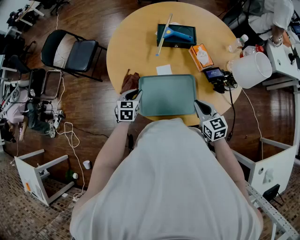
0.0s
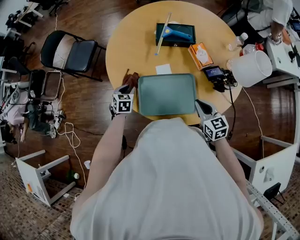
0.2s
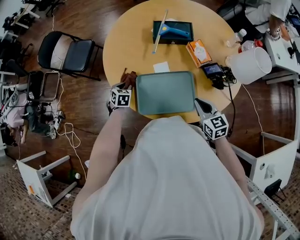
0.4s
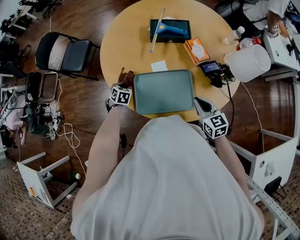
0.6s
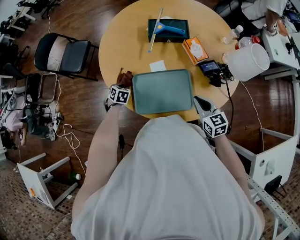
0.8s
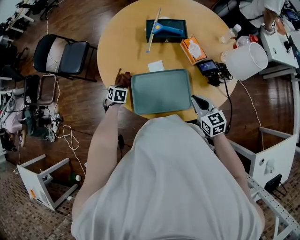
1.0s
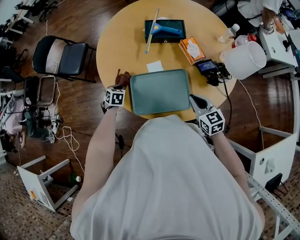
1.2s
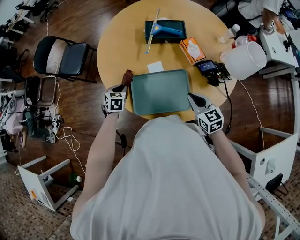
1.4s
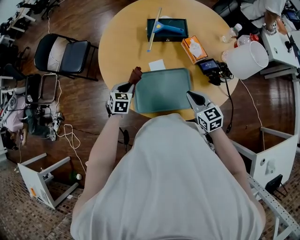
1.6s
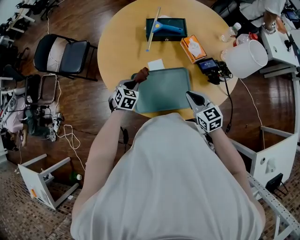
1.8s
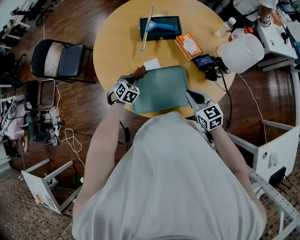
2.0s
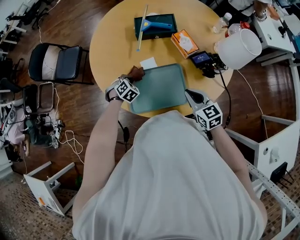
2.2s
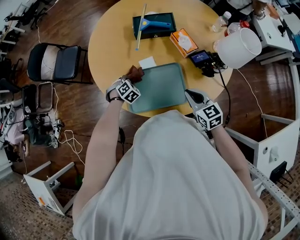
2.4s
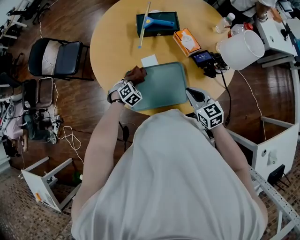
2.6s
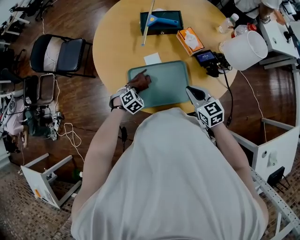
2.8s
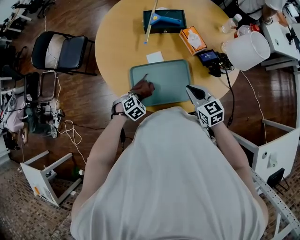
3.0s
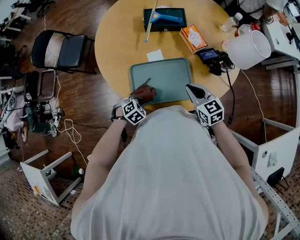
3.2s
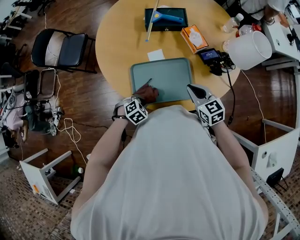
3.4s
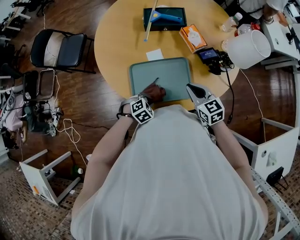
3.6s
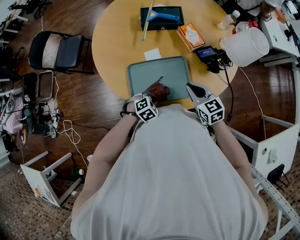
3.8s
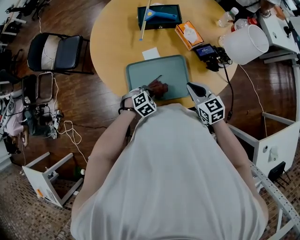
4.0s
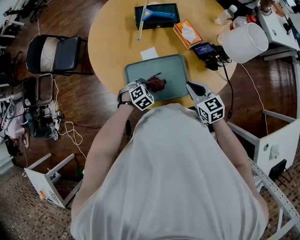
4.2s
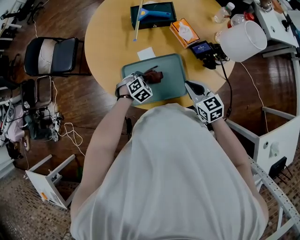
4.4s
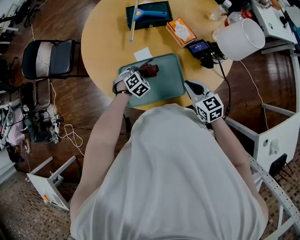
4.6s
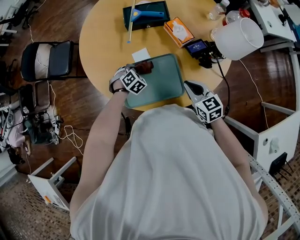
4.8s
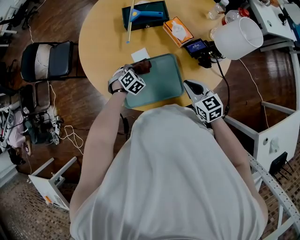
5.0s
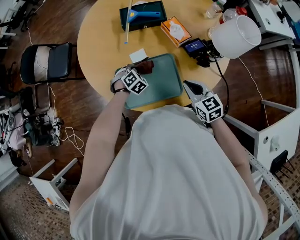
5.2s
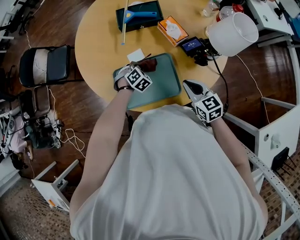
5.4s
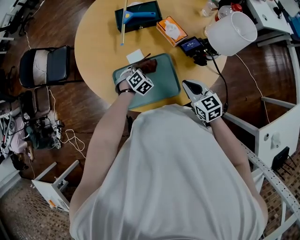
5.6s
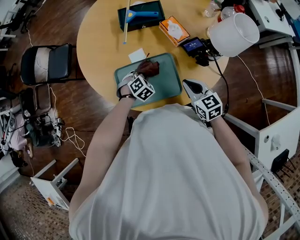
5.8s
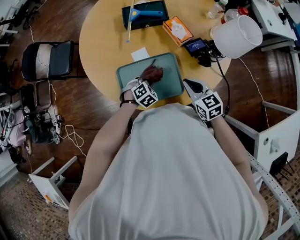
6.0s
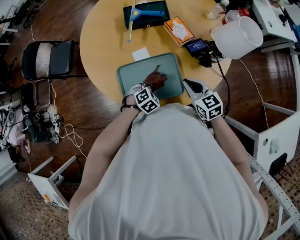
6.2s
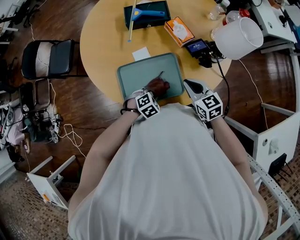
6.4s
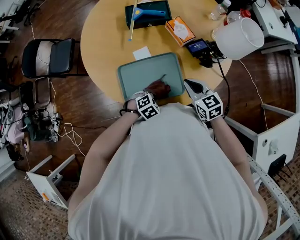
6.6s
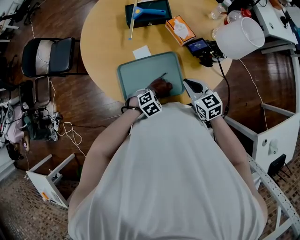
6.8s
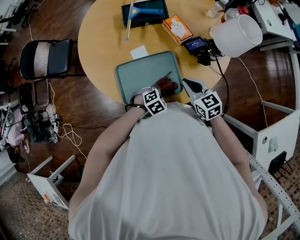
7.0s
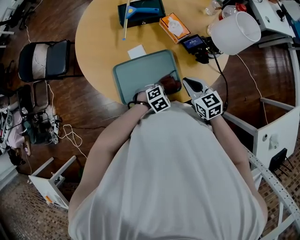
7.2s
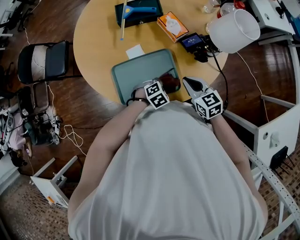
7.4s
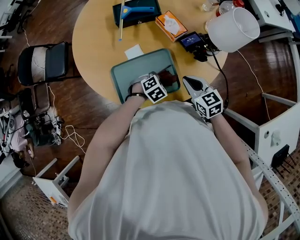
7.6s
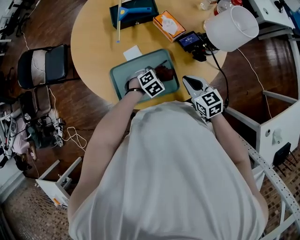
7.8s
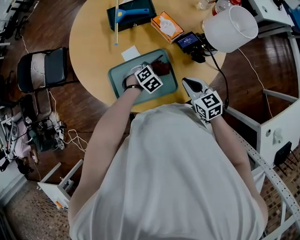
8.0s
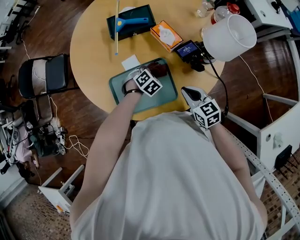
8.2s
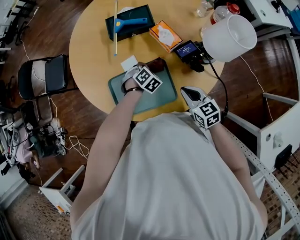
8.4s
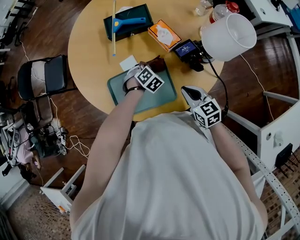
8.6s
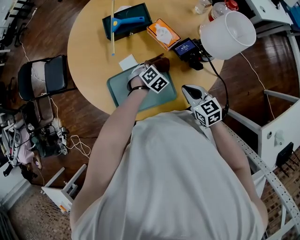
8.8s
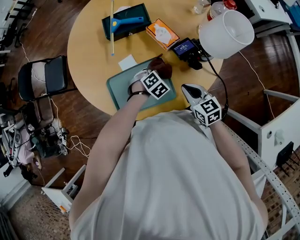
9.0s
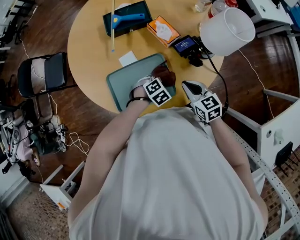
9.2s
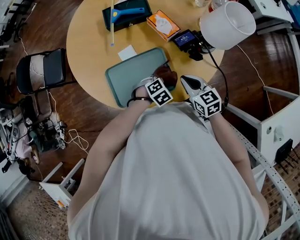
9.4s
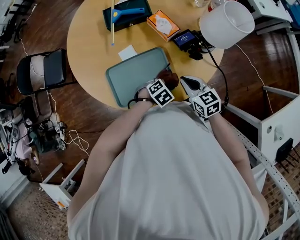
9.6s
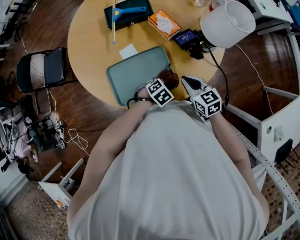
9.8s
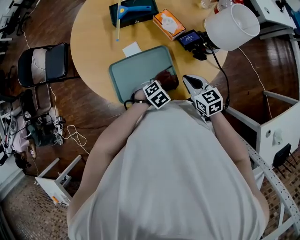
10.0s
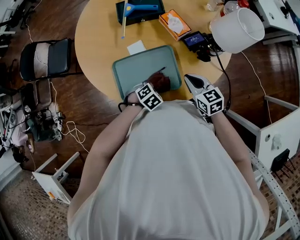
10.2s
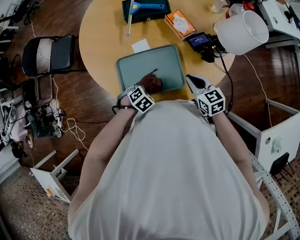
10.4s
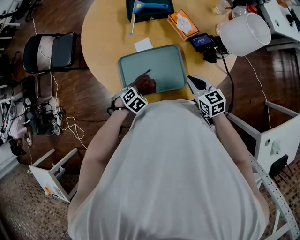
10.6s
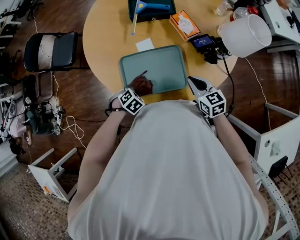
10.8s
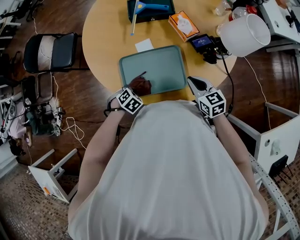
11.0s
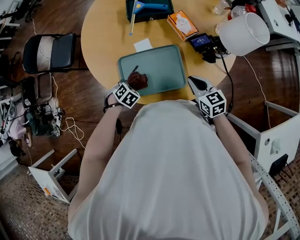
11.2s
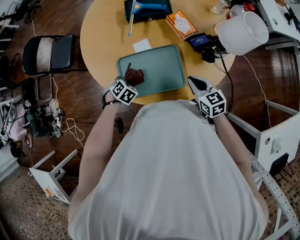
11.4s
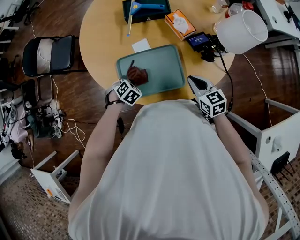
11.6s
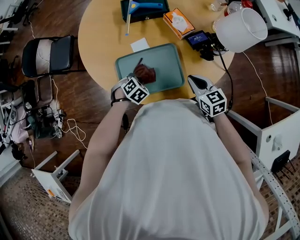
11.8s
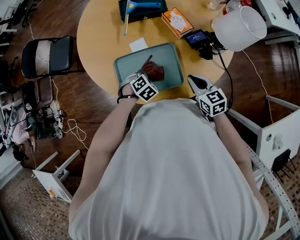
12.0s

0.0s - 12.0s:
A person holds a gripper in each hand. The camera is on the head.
0.0s - 1.6s: The left gripper travels downward and back again, roughly 10 cm each way.
1.6s - 3.0s: The left gripper is displaced backward and downward by some 15 cm, and rotates approximately 40 degrees.
3.0s - 4.4s: The left gripper is displaced forward and to the right by roughly 10 cm.
4.4s - 6.0s: The left gripper goes forward and returns, roughly 5 cm each way.
6.0s - 7.6s: The left gripper goes roughly 10 cm to the right.
7.6s - 9.0s: The left gripper travels forward by approximately 10 cm.
9.0s - 10.4s: The left gripper shifts by about 20 cm.

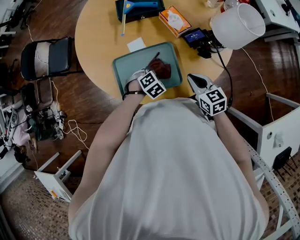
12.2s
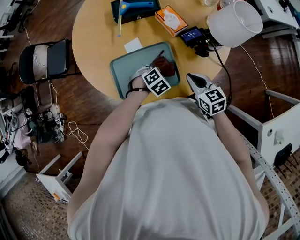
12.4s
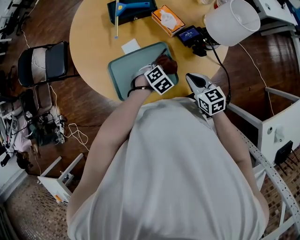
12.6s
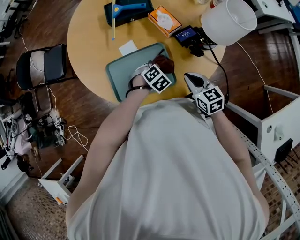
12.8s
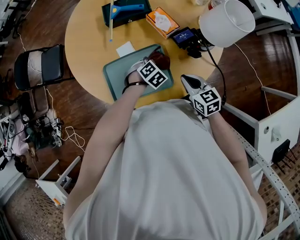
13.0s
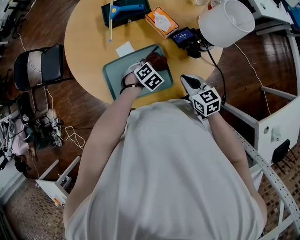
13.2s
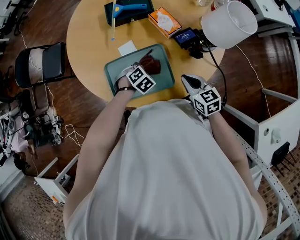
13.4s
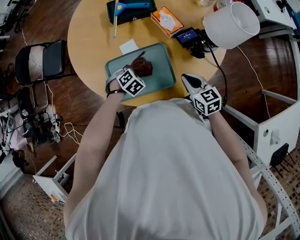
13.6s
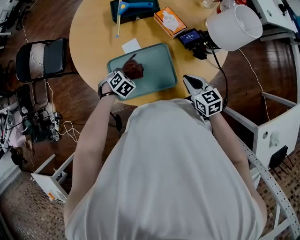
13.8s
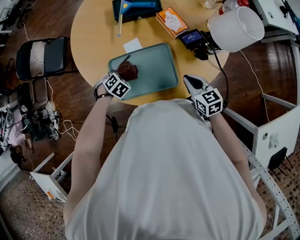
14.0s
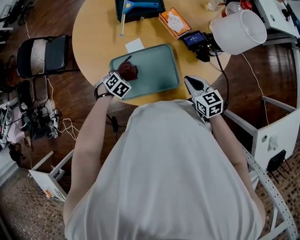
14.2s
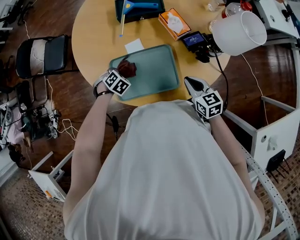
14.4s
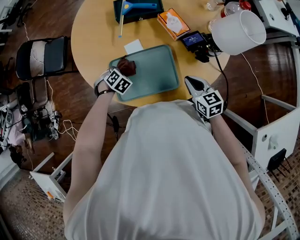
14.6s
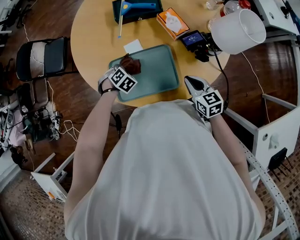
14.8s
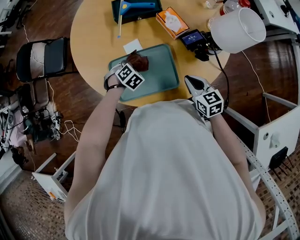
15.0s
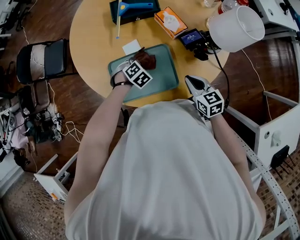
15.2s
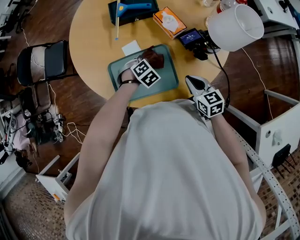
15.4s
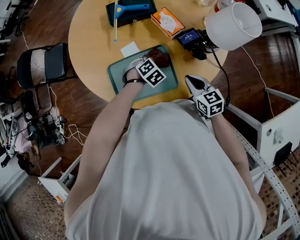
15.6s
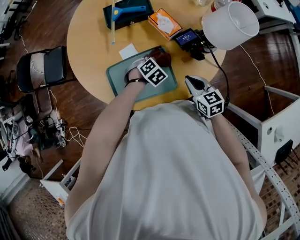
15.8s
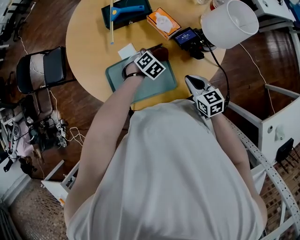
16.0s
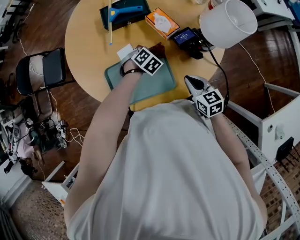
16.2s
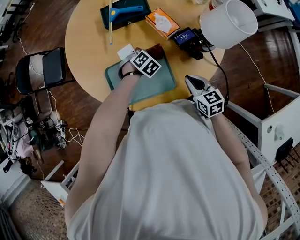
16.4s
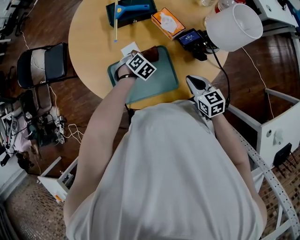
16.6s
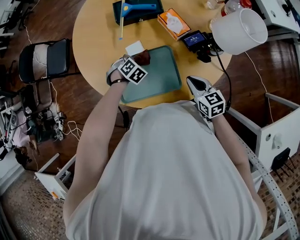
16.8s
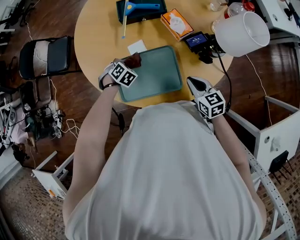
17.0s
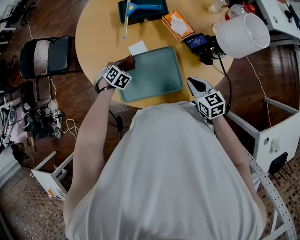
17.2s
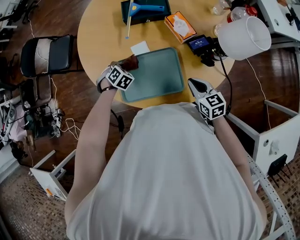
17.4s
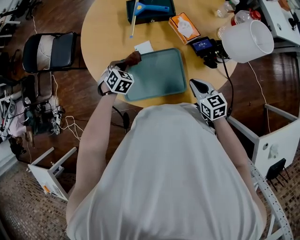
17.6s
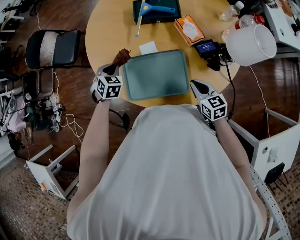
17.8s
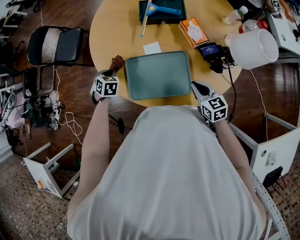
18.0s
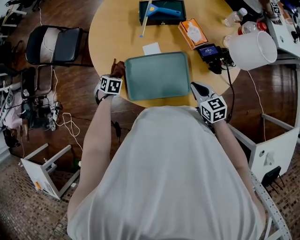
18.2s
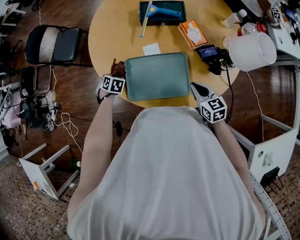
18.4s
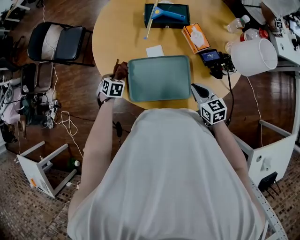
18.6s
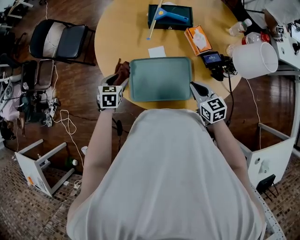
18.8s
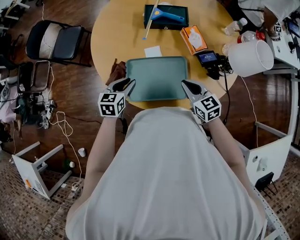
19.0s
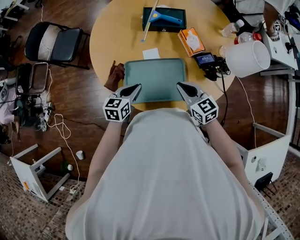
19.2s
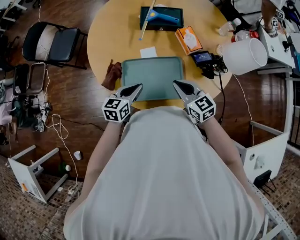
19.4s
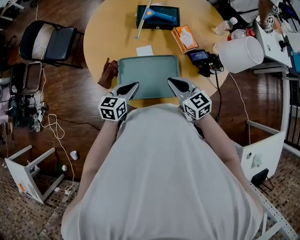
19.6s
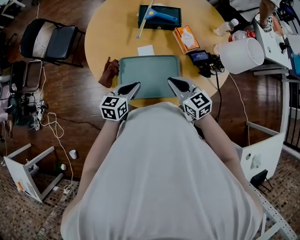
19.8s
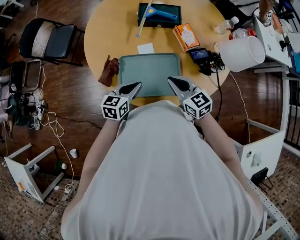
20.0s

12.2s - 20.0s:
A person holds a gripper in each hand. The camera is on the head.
12.2s - 13.8s: The left gripper goes about 10 cm to the left.
13.8s - 15.4s: The left gripper is displaced to the right by about 10 cm.
15.4s - 16.8s: The left gripper is displaced to the left and forward by approximately 10 cm.
16.8s - 18.4s: The left gripper goes roughly 20 cm to the left, and turns by roughly 40 degrees.
18.4s - 20.0s: The right gripper shifts by about 10 cm. The left gripper shifts by approximately 20 cm, and angles its fingers upward, by approximately 40 degrees.

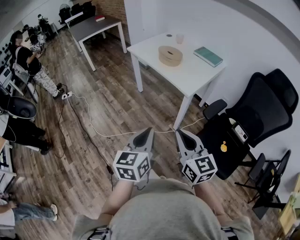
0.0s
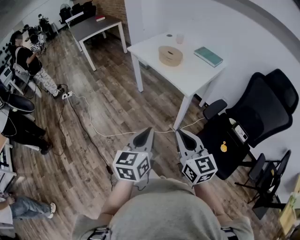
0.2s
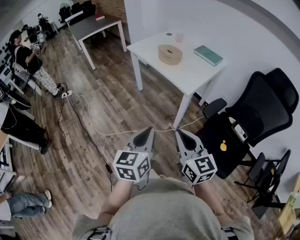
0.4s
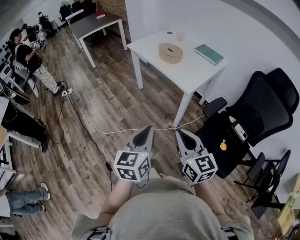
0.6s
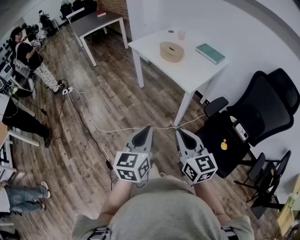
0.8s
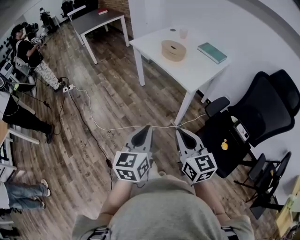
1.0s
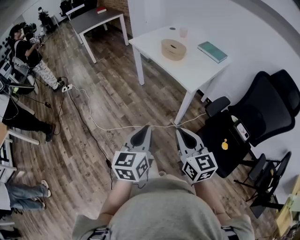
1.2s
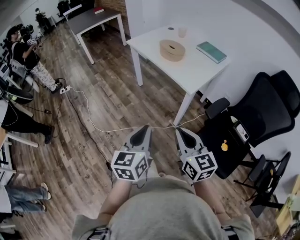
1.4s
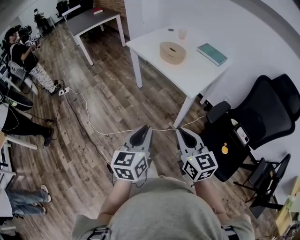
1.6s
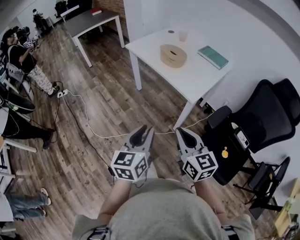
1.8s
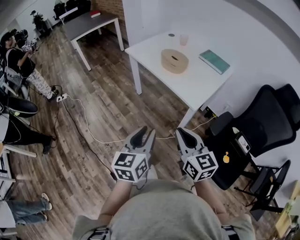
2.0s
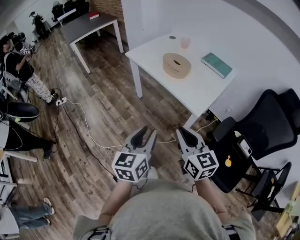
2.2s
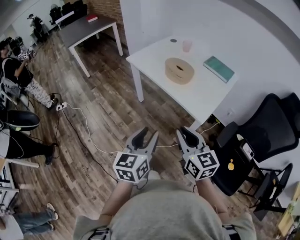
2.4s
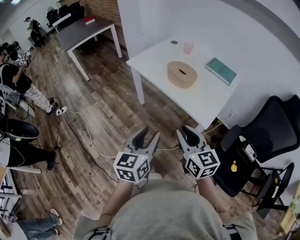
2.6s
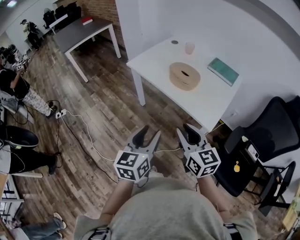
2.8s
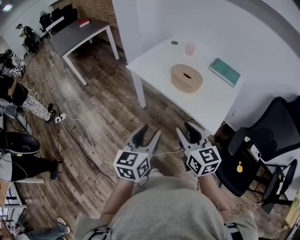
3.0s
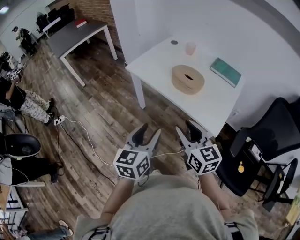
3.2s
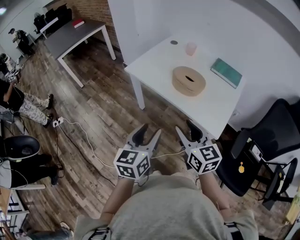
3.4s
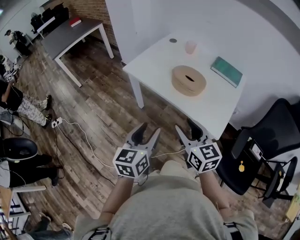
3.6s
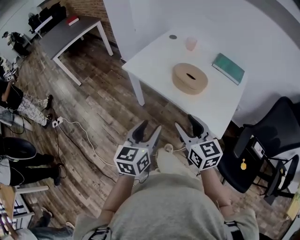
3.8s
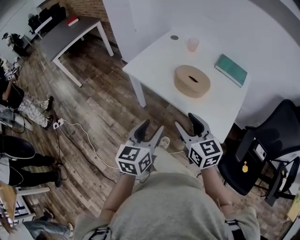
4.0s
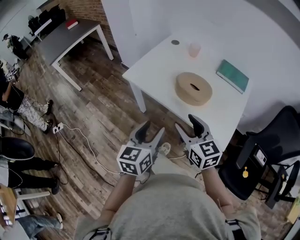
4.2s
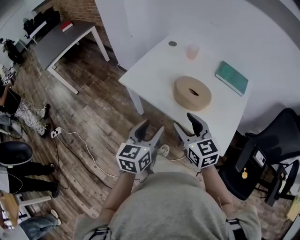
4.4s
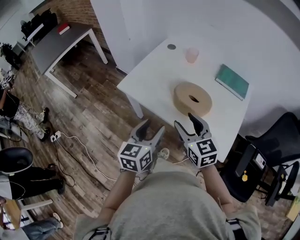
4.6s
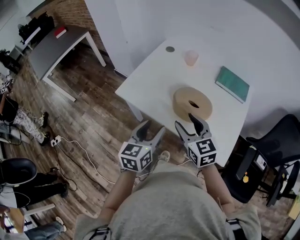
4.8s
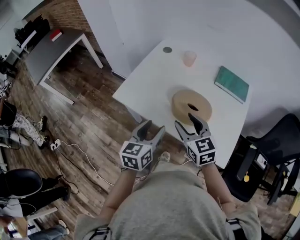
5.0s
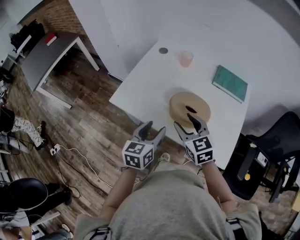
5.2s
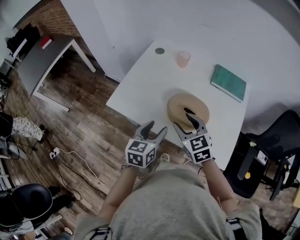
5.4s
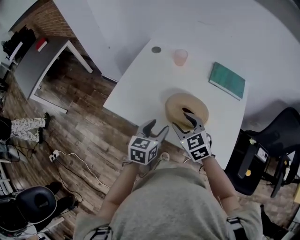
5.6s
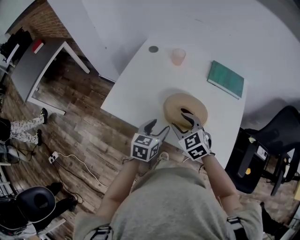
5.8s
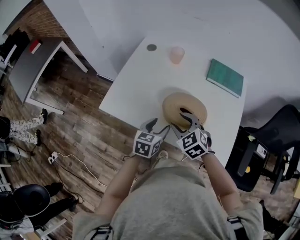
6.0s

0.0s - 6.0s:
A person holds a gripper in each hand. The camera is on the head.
0.0s - 1.6s: The grippers both shift forward by about 5 cm.
1.6s - 3.0s: The two grippers go about 30 cm forward. The right gripper opens its fingers. Meanwhile the left gripper opens its fingers.
3.0s - 4.4s: Both grippers move forward, about 20 cm. The right gripper opens.
4.4s - 6.0s: The two grippers go some 20 cm forward and downward. The right gripper turns by approximately 30 degrees, while the left gripper changes its angle by approximately 30 degrees.
